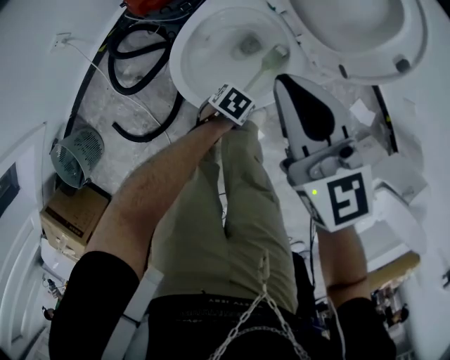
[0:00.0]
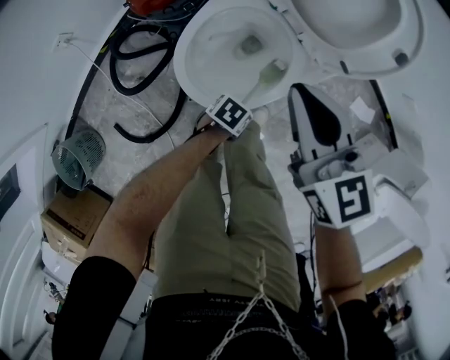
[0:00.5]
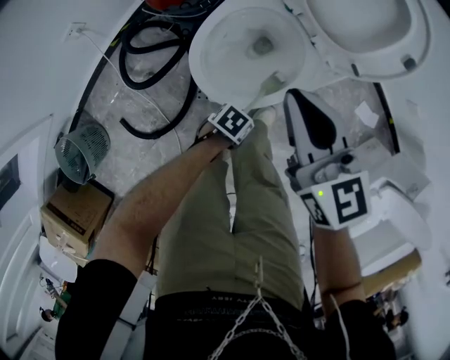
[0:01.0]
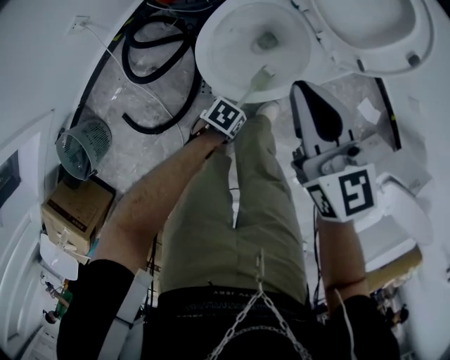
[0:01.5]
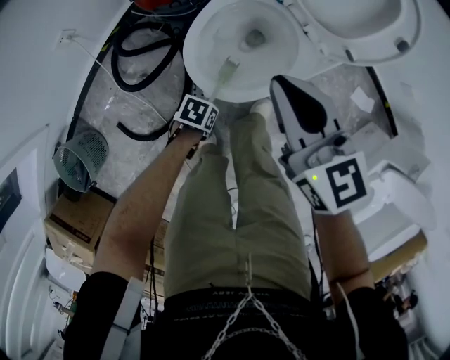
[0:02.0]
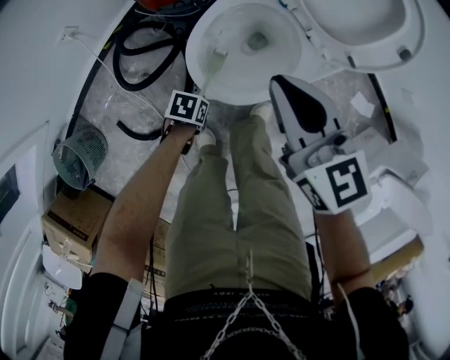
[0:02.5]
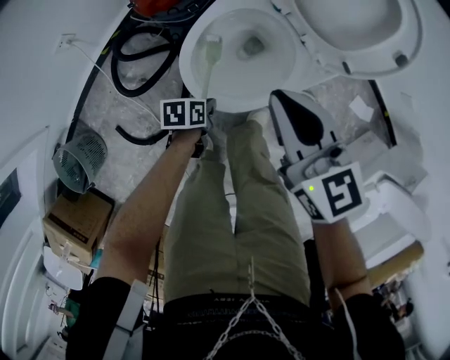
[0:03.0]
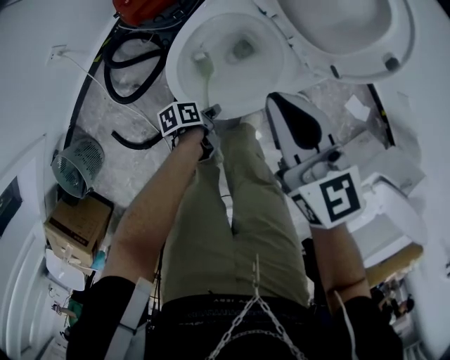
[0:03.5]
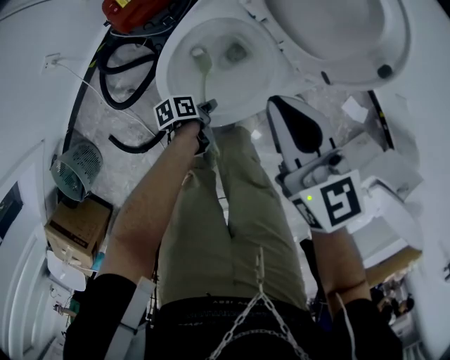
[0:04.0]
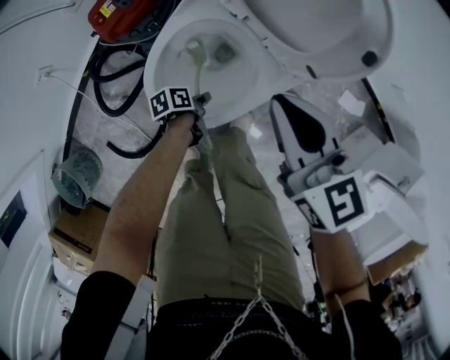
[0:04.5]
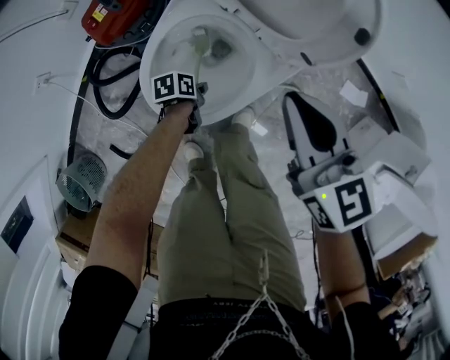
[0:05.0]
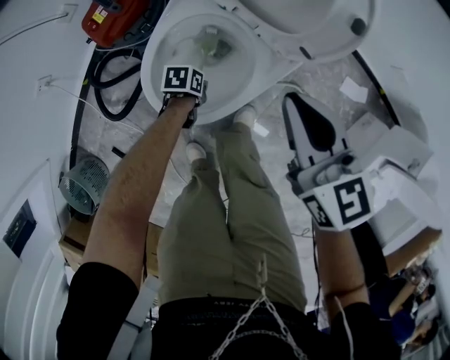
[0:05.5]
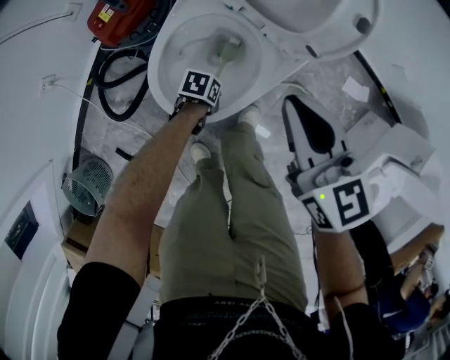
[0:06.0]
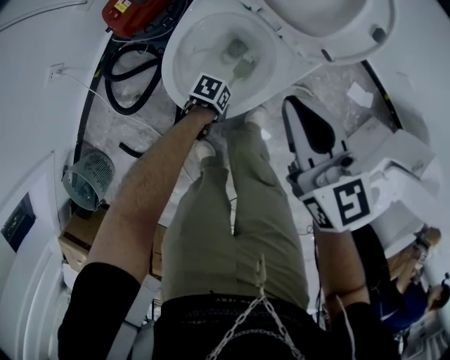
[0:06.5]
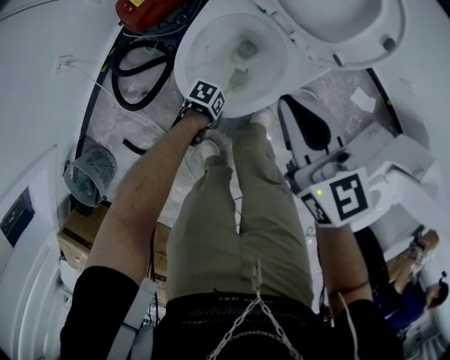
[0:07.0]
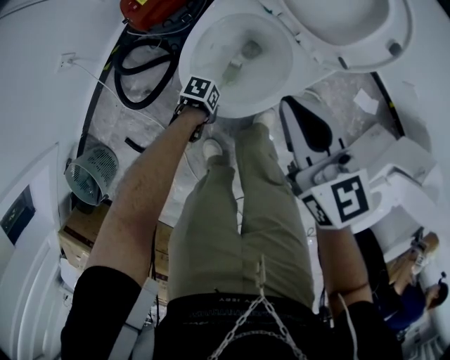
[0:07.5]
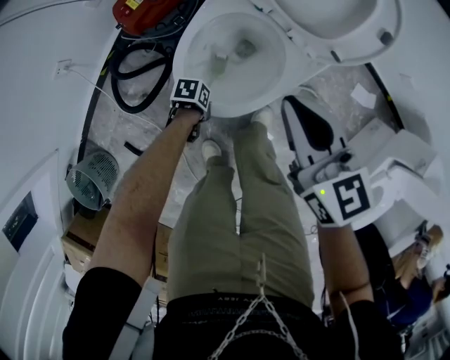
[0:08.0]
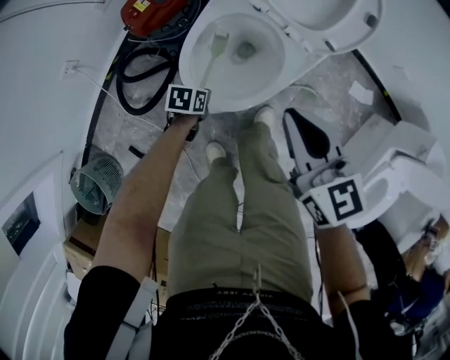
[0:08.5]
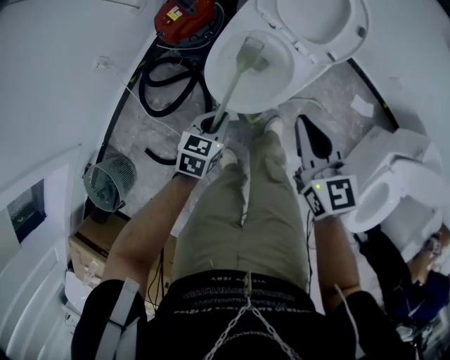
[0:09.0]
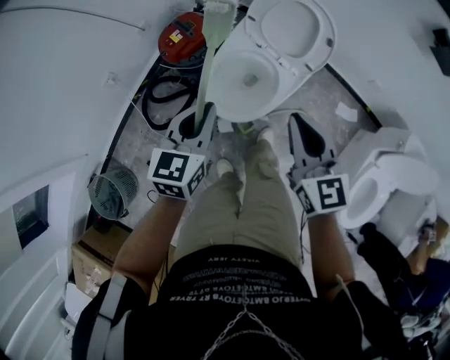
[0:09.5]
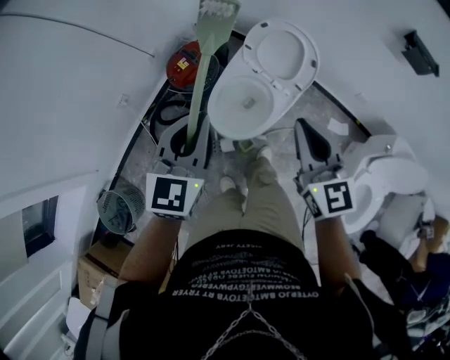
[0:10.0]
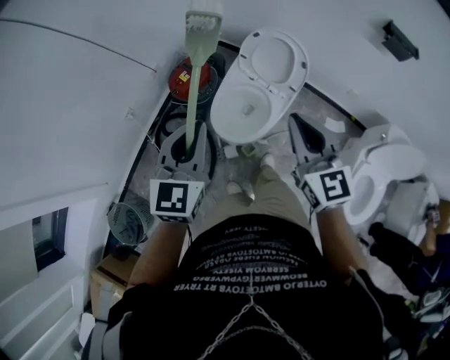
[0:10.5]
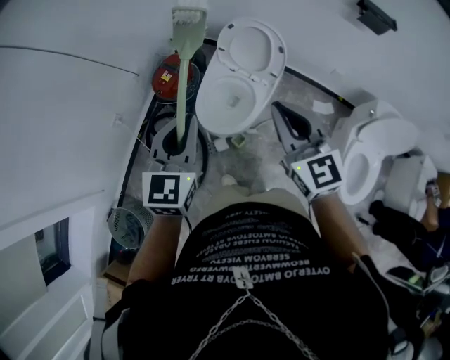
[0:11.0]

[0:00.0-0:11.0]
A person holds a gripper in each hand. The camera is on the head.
0:00.0 to 0:02.0: The right gripper moves some 10 cm, while the left gripper ends up some 20 cm from where it was.
0:02.0 to 0:03.5: The right gripper changes place by approximately 5 cm. The left gripper ends up approximately 10 cm from where it was, and rolls counterclockwise, seen from behind, by roughly 40 degrees.
0:03.5 to 0:05.5: The right gripper changes place by approximately 10 cm; the left gripper changes place by about 10 cm, and rotates roughly 50 degrees.
0:05.5 to 0:07.5: The left gripper shifts by some 15 cm, while the right gripper moves approximately 10 cm.
0:07.5 to 0:09.0: The left gripper shifts about 25 cm upward, and swivels roughly 60 degrees. The right gripper shifts by approximately 15 cm.
0:09.0 to 0:11.0: The right gripper travels upward by approximately 30 cm. Meanwhile the left gripper moves upward, roughly 50 cm, and rotates roughly 40 degrees.

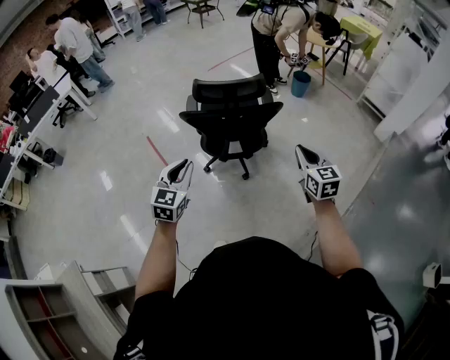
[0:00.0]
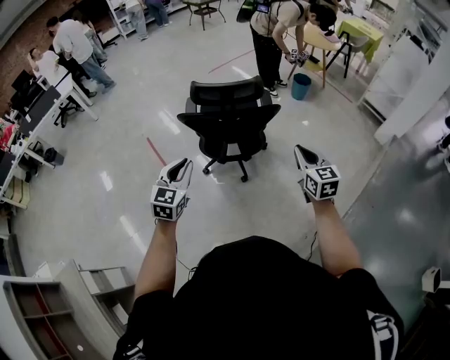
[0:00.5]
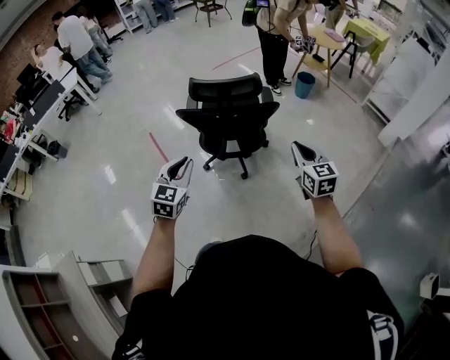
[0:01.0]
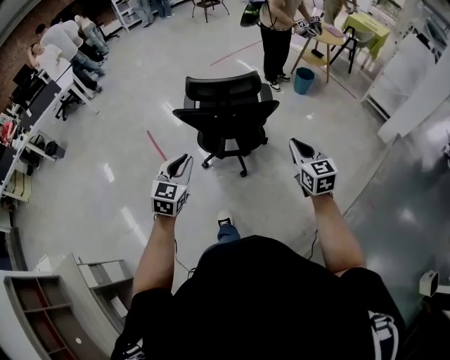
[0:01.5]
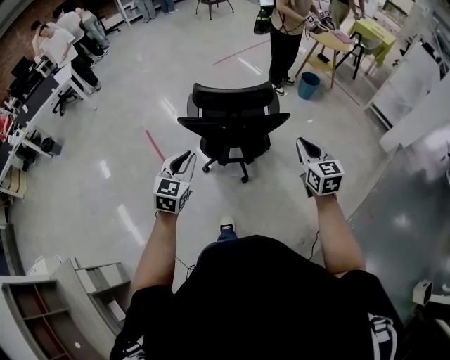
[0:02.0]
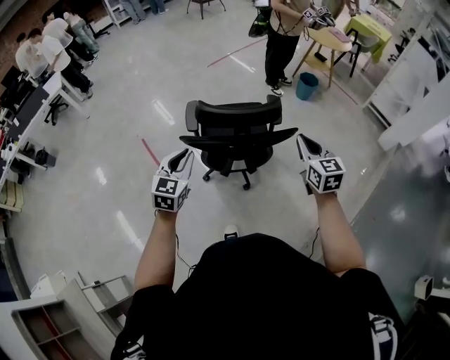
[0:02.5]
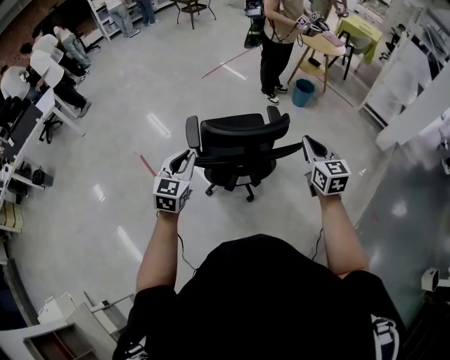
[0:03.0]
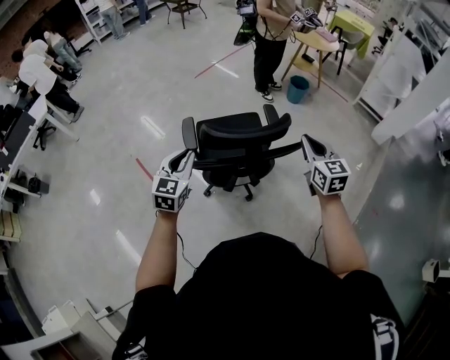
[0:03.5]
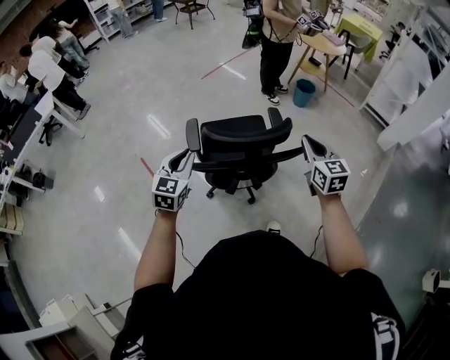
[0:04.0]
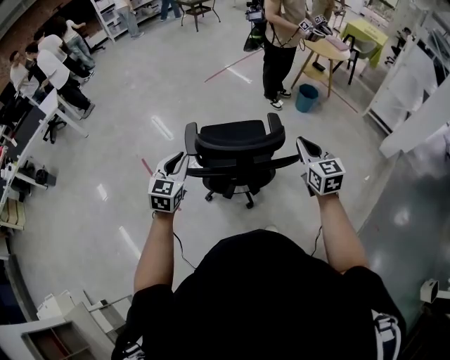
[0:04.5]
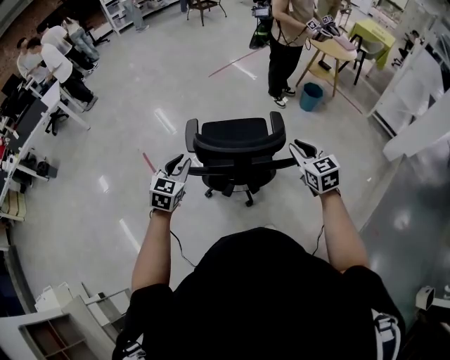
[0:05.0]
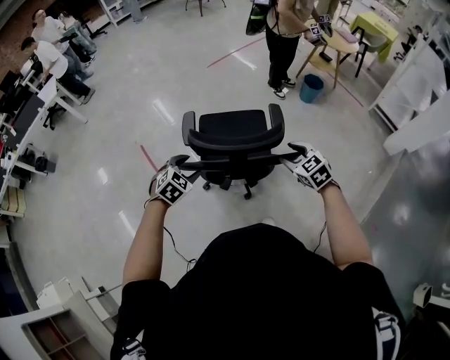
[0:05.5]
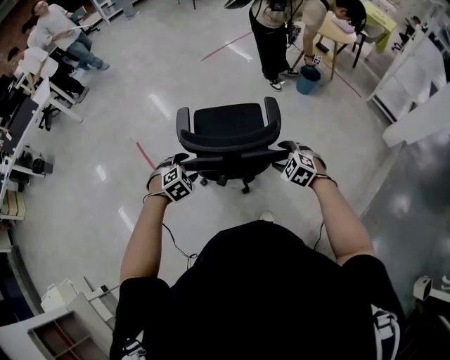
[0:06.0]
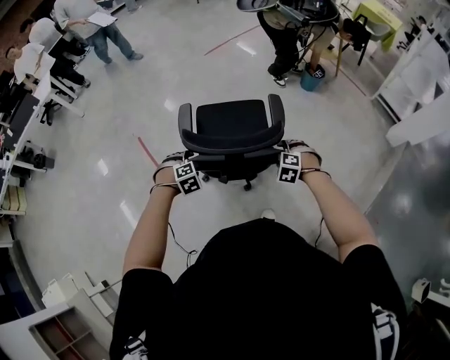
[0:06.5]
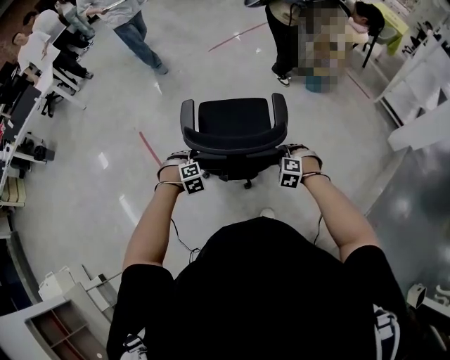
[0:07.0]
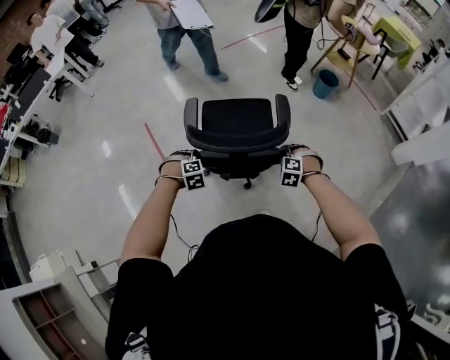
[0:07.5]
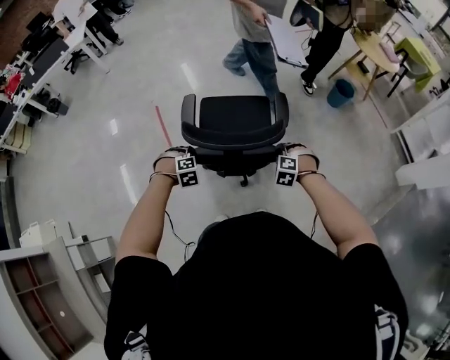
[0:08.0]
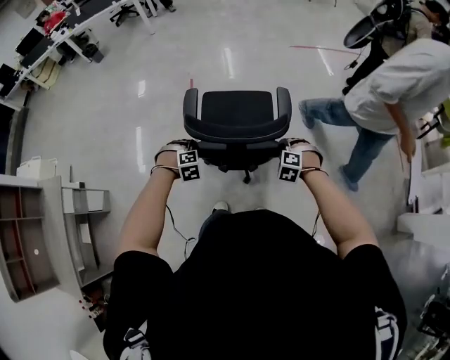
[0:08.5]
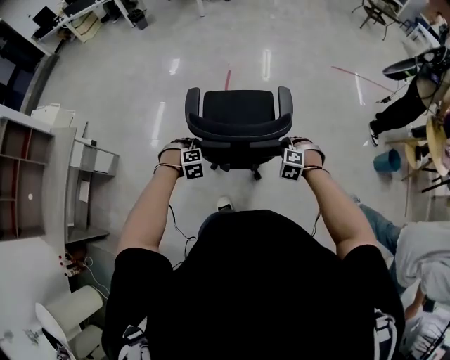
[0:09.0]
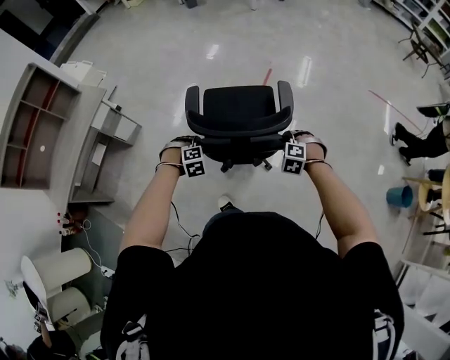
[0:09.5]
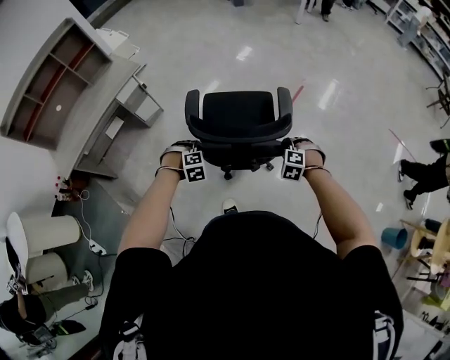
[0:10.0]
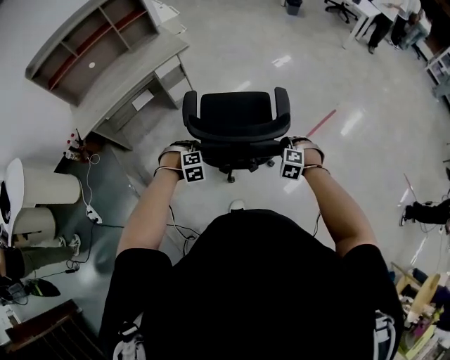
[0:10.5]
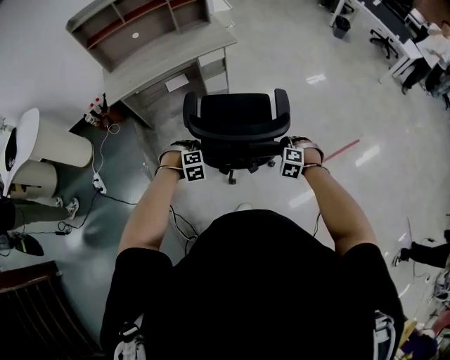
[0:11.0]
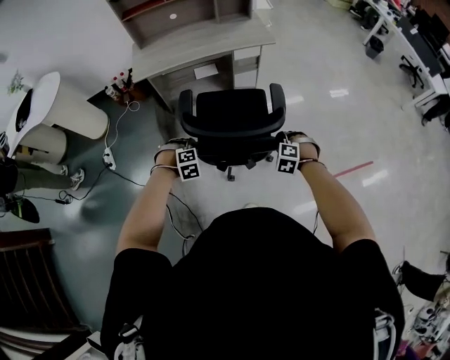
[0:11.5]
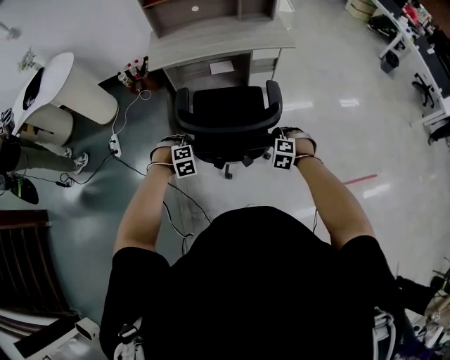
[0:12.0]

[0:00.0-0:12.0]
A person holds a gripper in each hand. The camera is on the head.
0:00.0 to 0:02.0: The grippers both shift forward by approximately 10 cm.
0:02.0 to 0:04.0: The grippers both shift forward and to the left by approximately 20 cm.
0:04.0 to 0:06.0: Both grippers travel together downward, about 20 cm. The right gripper points its fingers roughly 40 degrees further downward, and opens, while the left gripper tips its fingers downward by about 40 degrees, and opens up.
0:06.0 to 0:08.0: Both grippers travel together downward, approximately 10 cm. The right gripper turns by approximately 30 degrees, and closes its fingers, while the left gripper closes its fingers.
0:08.0 to 0:10.0: The pair of grippers is taken about 50 cm. The left gripper rotates around the line of its fingers by roughly 60 degrees, counterclockwise from behind, while the right gripper rolls counterclockwise, seen from behind, by some 50 degrees.
0:10.0 to 0:12.0: Both grippers are carried about 50 cm. The left gripper rolls counterclockwise, seen from behind, by approximately 40 degrees. Meanwhile the right gripper rotates around the line of its fingers by approximately 40 degrees, counterclockwise from behind.

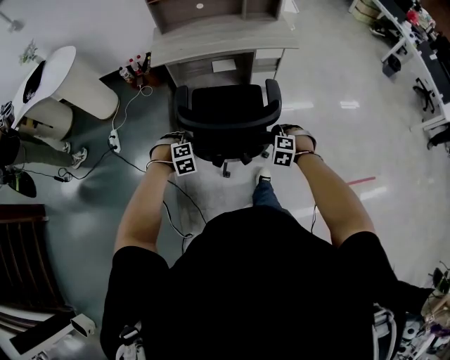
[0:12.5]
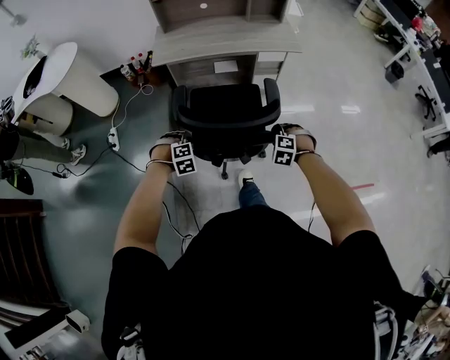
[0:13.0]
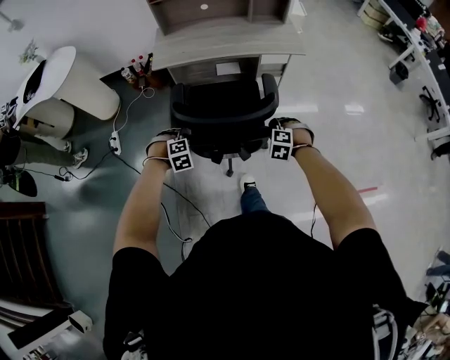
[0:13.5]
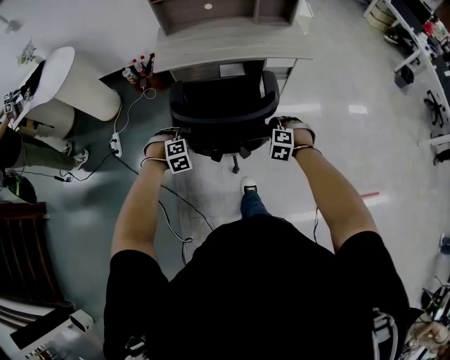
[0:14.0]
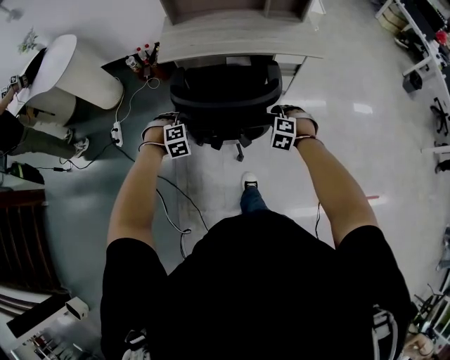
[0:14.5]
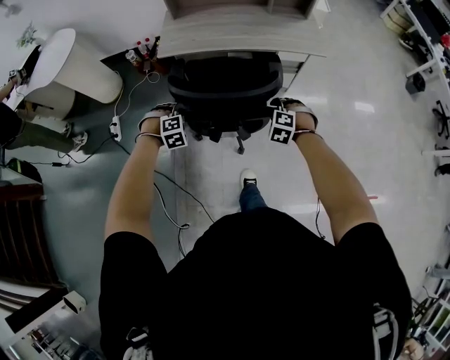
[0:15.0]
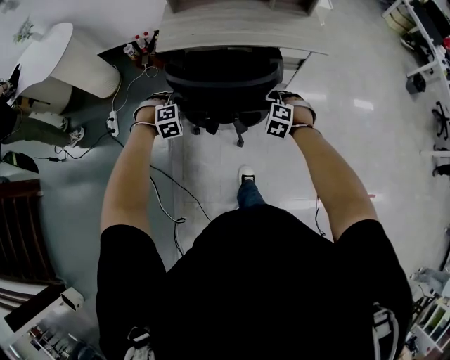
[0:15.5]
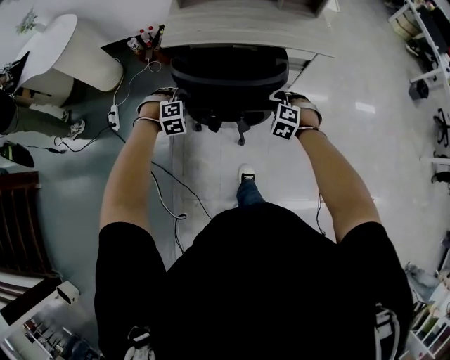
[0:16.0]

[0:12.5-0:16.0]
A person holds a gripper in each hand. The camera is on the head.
0:12.5 to 0:14.5: Both grippers move forward, approximately 20 cm.
0:14.5 to 0:16.0: The grippers both shift forward by roughly 5 cm.
